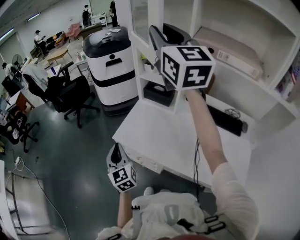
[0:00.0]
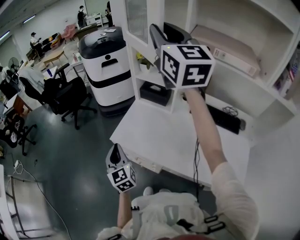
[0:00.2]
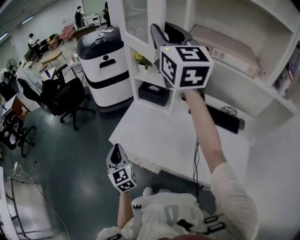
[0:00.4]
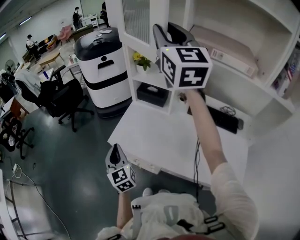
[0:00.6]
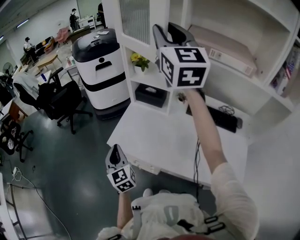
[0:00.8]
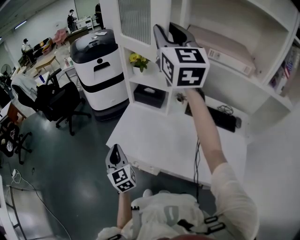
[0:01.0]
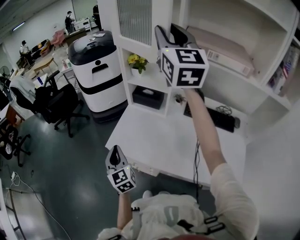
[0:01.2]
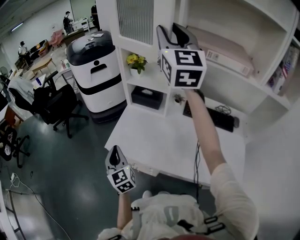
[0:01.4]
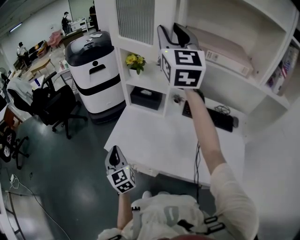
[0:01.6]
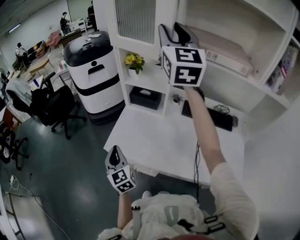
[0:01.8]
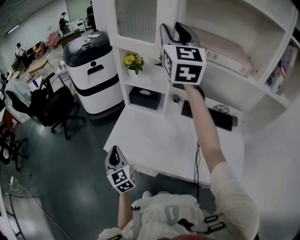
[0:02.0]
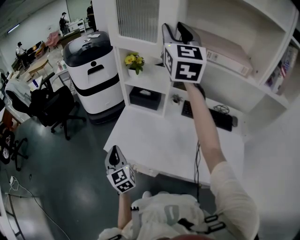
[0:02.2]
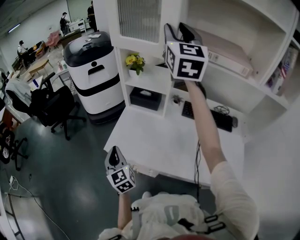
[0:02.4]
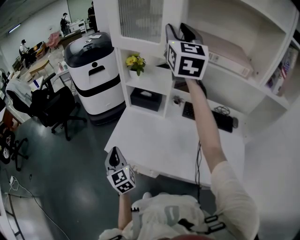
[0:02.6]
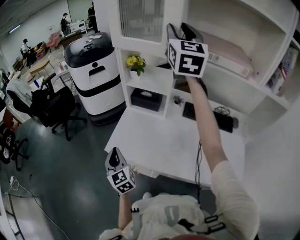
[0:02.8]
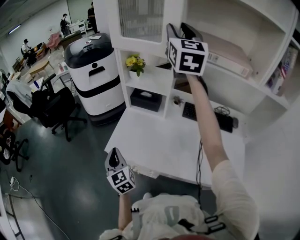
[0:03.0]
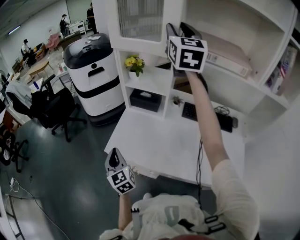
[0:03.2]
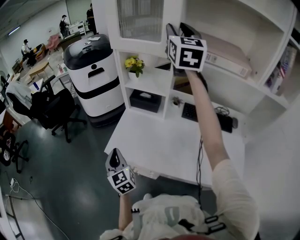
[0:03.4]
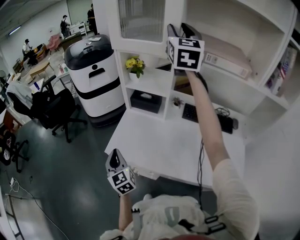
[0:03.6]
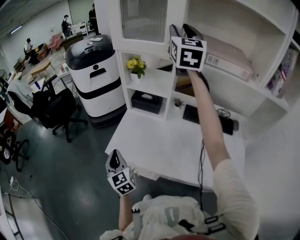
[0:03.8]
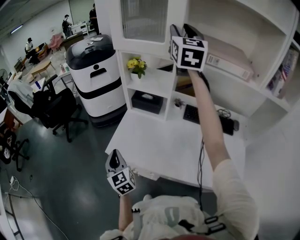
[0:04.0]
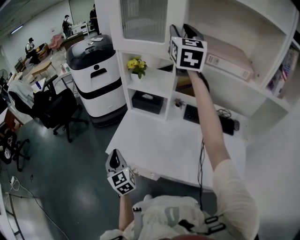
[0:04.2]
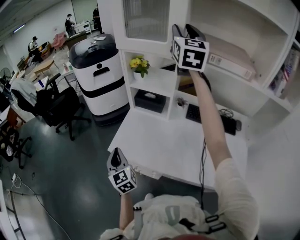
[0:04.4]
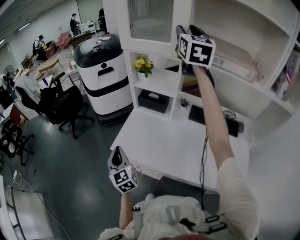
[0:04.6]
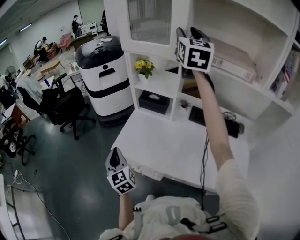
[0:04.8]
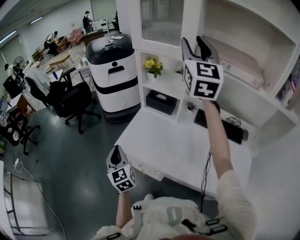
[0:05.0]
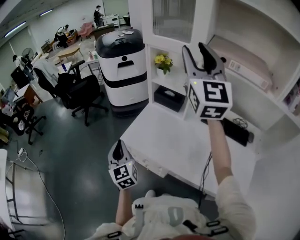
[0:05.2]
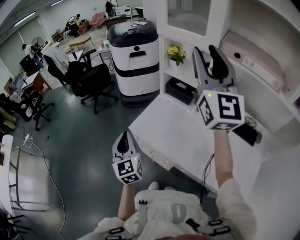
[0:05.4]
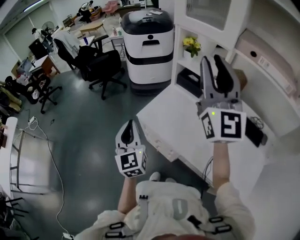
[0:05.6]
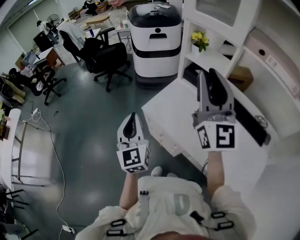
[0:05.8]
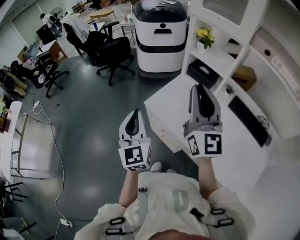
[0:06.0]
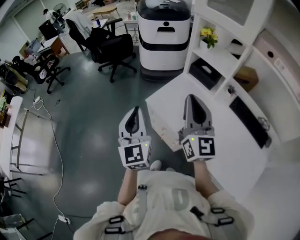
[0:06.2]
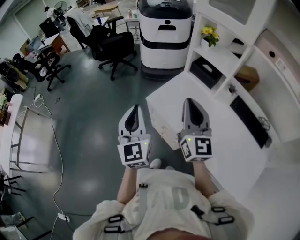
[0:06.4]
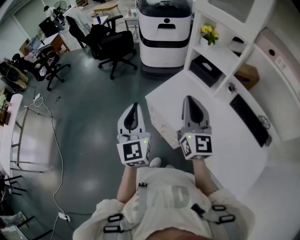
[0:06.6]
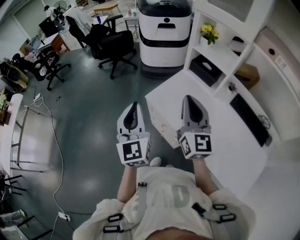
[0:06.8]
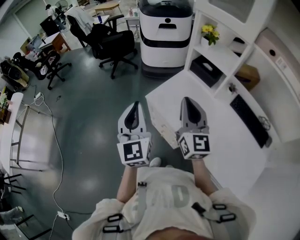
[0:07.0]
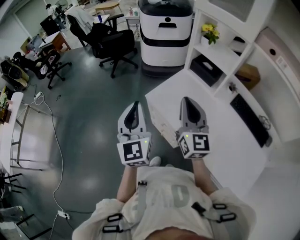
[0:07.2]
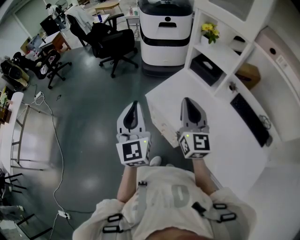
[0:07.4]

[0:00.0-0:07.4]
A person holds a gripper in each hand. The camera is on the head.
0:00.0 to 0:01.4: The right gripper travels to the right by about 10 cm, and swivels about 20 degrees.
0:01.4 to 0:03.0: The right gripper changes place by roughly 5 cm.
0:03.0 to 0:04.4: The grippers move only a little.
0:04.4 to 0:06.0: The right gripper is displaced backward, to the left and downward by approximately 40 cm, rotates some 40 degrees, and closes its fingers. Meanwhile the left gripper is displaced upward, backward and to the left by approximately 15 cm.
0:06.0 to 0:07.4: The right gripper travels downward by about 10 cm.

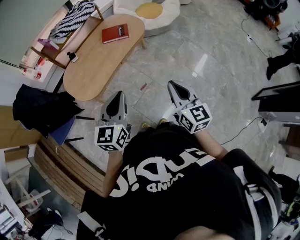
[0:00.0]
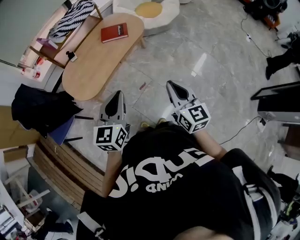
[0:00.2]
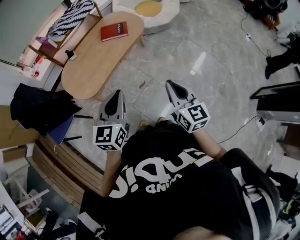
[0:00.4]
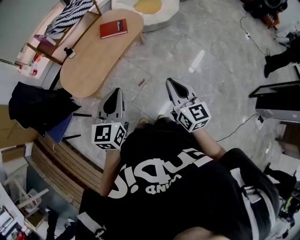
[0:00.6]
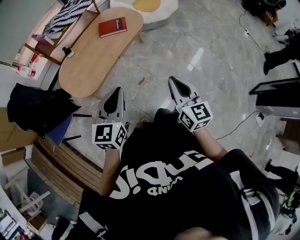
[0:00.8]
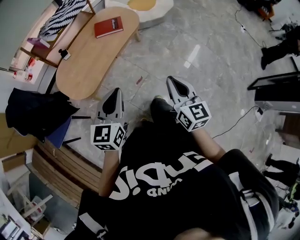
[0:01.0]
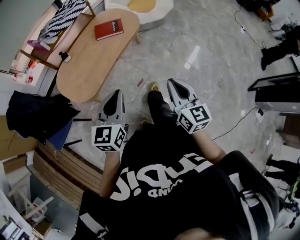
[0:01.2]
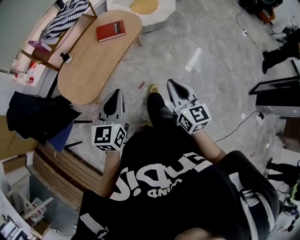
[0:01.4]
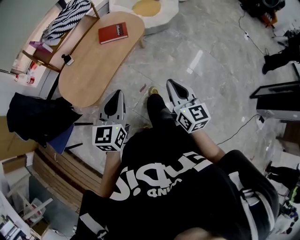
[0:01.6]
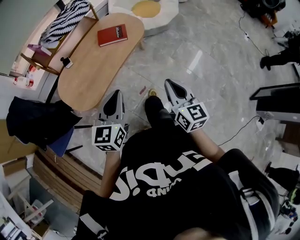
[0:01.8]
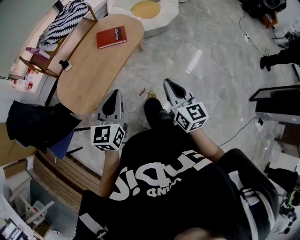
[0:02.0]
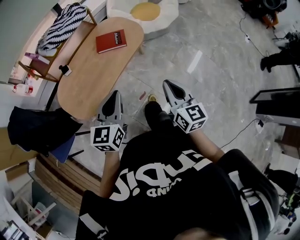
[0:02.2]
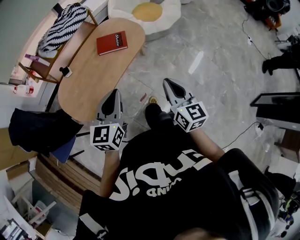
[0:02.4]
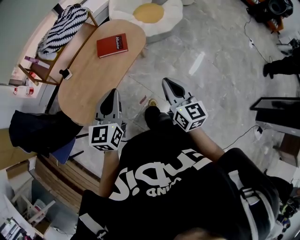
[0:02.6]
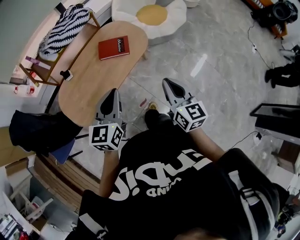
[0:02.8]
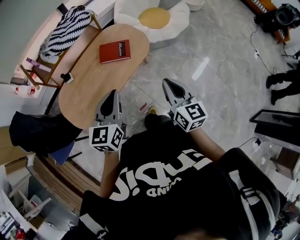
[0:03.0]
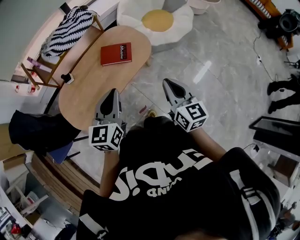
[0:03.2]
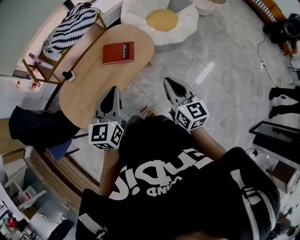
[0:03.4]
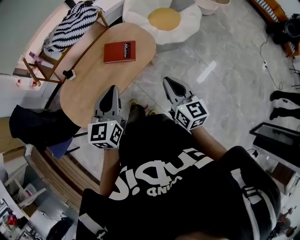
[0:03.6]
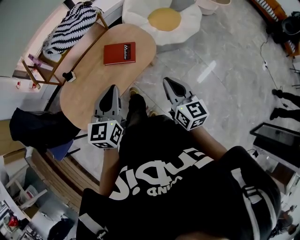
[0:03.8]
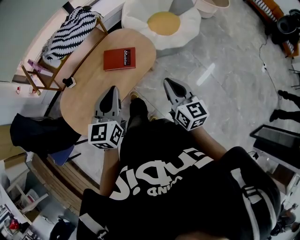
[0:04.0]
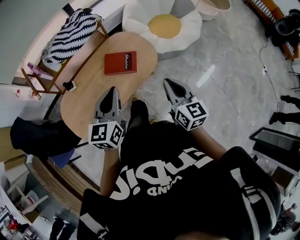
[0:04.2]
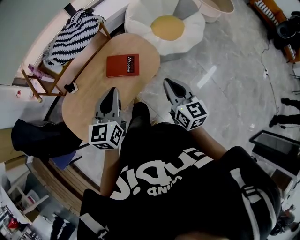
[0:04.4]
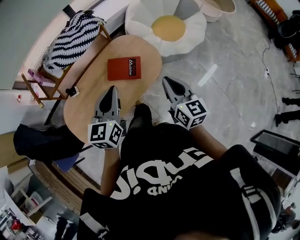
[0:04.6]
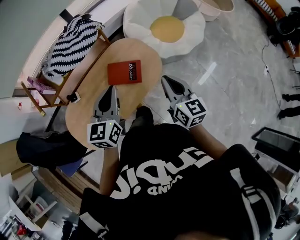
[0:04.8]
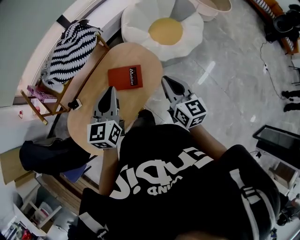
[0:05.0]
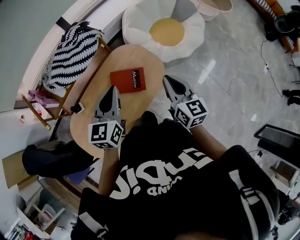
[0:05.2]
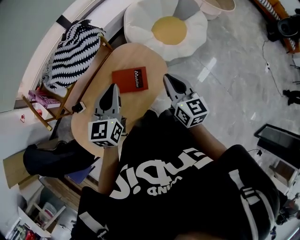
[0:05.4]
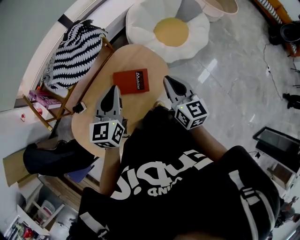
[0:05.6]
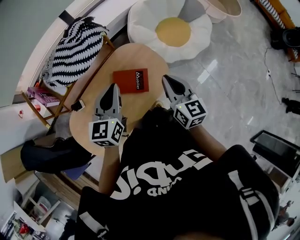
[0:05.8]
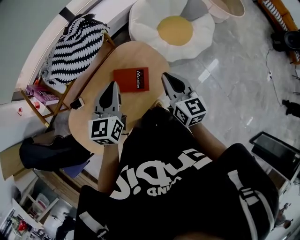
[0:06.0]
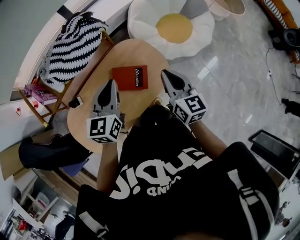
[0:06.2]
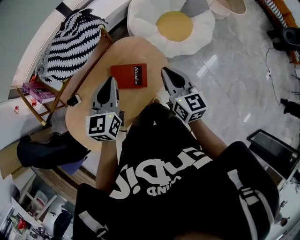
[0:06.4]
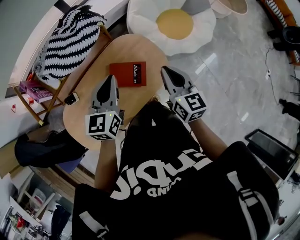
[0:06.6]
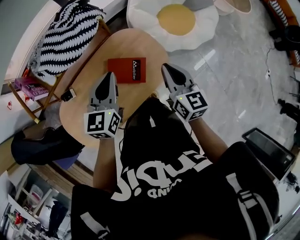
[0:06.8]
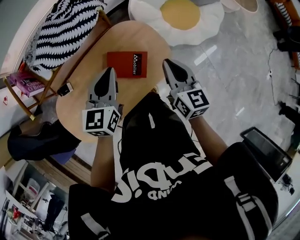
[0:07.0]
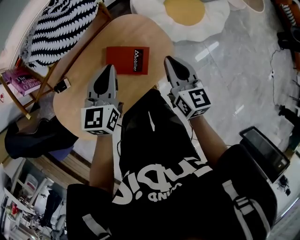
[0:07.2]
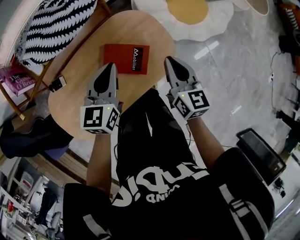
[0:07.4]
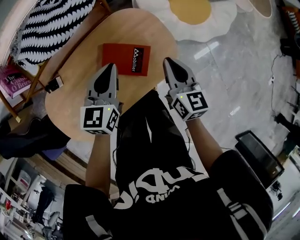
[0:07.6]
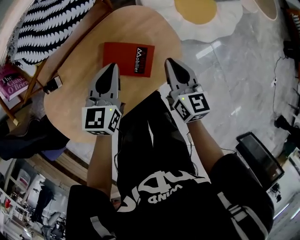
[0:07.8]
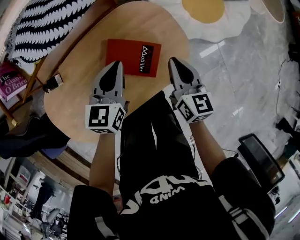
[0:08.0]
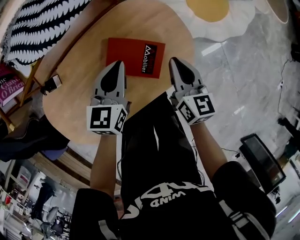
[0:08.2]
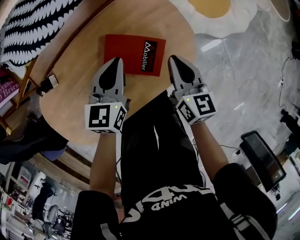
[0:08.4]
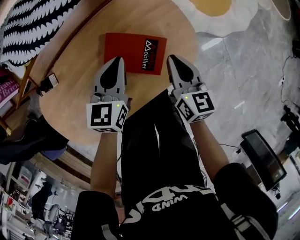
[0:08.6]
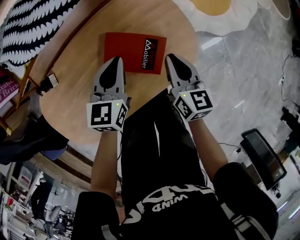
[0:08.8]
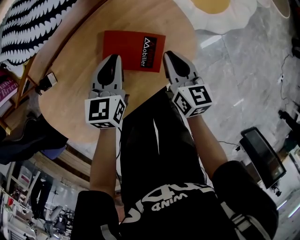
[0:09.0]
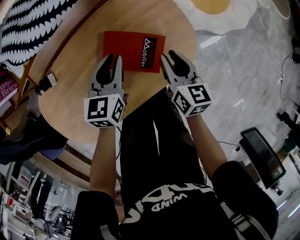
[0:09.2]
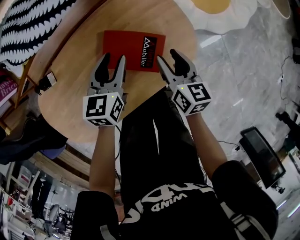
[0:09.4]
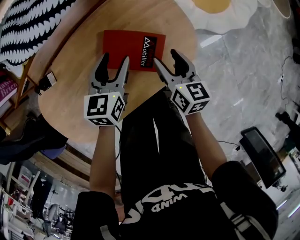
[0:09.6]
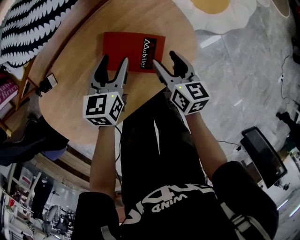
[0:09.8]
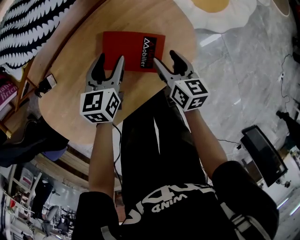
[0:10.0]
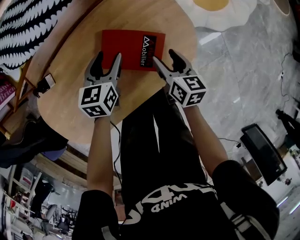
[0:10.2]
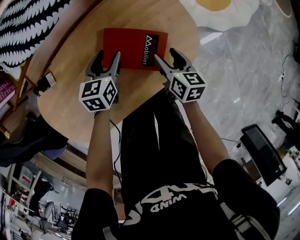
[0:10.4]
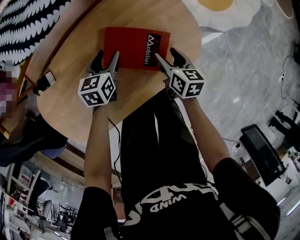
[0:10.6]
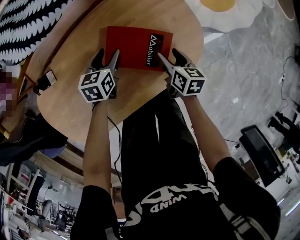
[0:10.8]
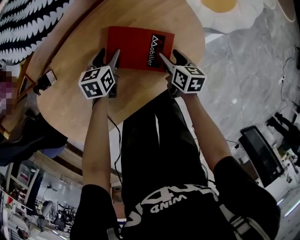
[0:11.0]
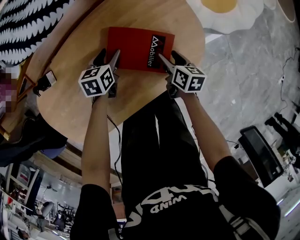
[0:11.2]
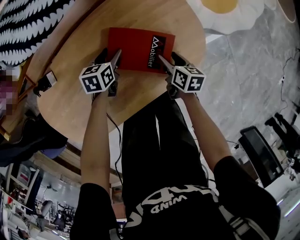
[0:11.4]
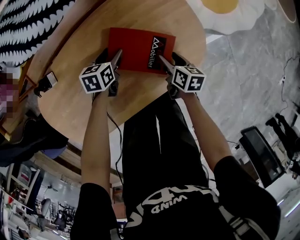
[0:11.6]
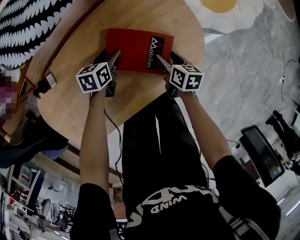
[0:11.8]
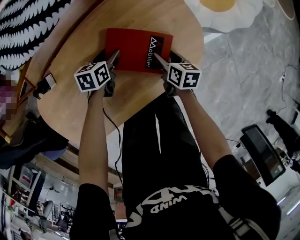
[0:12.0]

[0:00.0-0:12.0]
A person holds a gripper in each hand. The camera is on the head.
0:00.0 to 0:01.6: The two grippers go approximately 10 cm forward and to the left.
0:01.6 to 0:03.0: The two grippers go about 25 cm forward.
0:03.0 to 0:04.4: Both grippers travel together forward, some 20 cm.
0:04.4 to 0:06.0: The two grippers go roughly 20 cm forward.
0:06.0 to 0:07.6: The right gripper shifts some 20 cm downward and forward, while the left gripper travels downward by about 20 cm.
0:07.6 to 0:09.0: Both grippers travel together downward, some 15 cm.
0:09.0 to 0:10.4: Both grippers move downward, about 10 cm. The left gripper opens its fingers. The right gripper opens its fingers.
0:10.4 to 0:12.0: Both grippers move downward, about 10 cm.

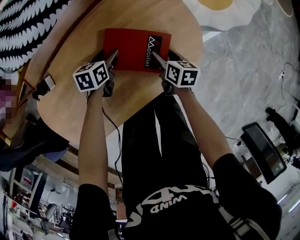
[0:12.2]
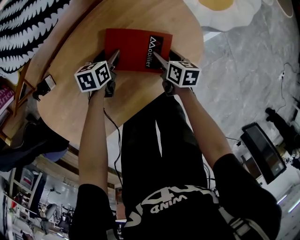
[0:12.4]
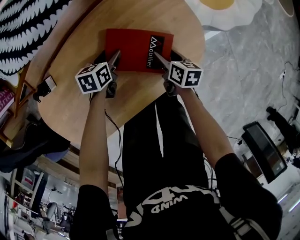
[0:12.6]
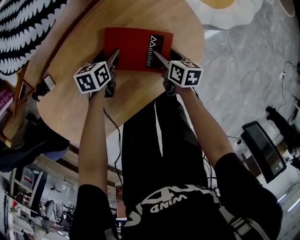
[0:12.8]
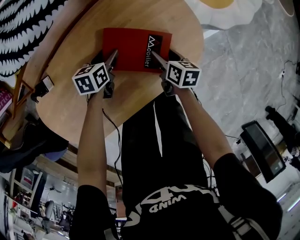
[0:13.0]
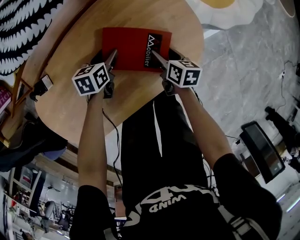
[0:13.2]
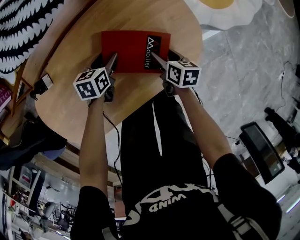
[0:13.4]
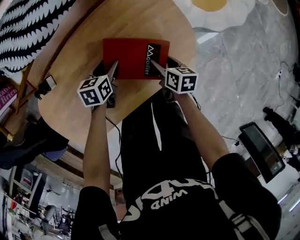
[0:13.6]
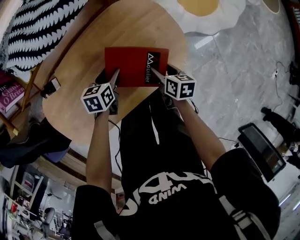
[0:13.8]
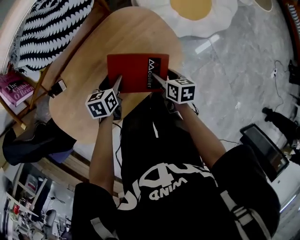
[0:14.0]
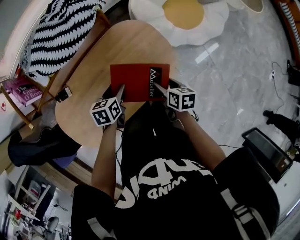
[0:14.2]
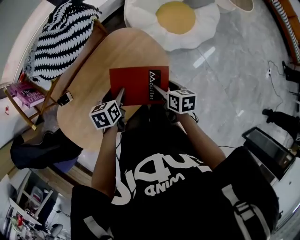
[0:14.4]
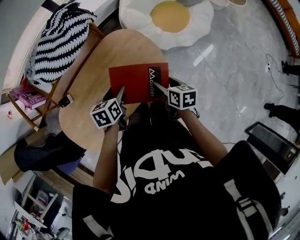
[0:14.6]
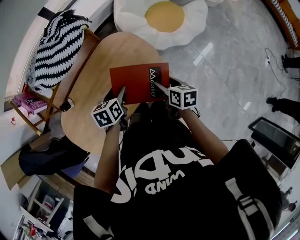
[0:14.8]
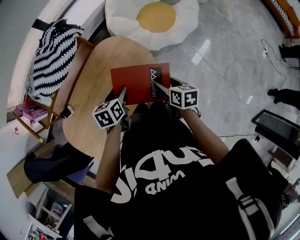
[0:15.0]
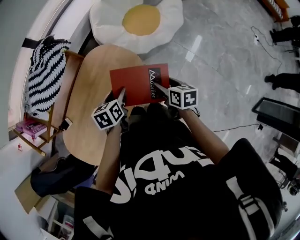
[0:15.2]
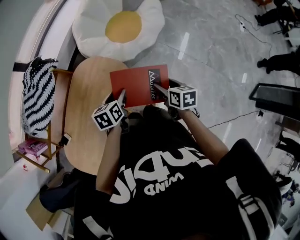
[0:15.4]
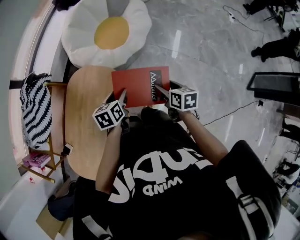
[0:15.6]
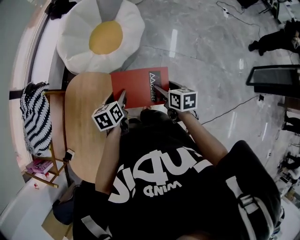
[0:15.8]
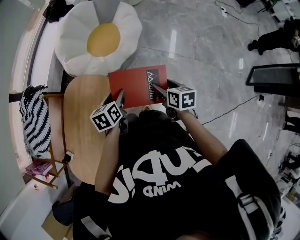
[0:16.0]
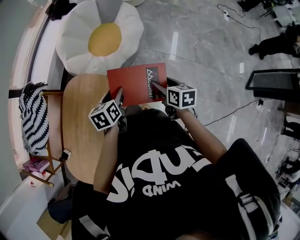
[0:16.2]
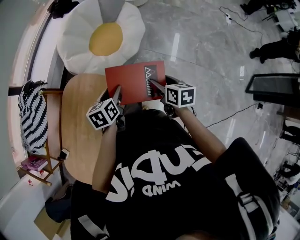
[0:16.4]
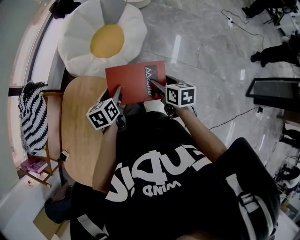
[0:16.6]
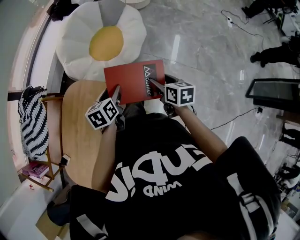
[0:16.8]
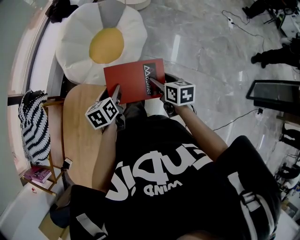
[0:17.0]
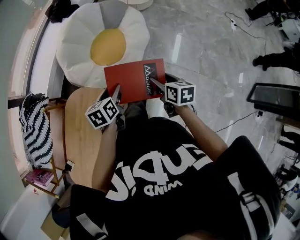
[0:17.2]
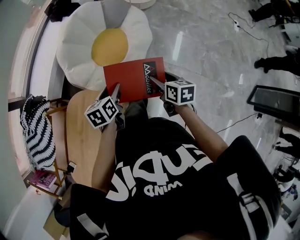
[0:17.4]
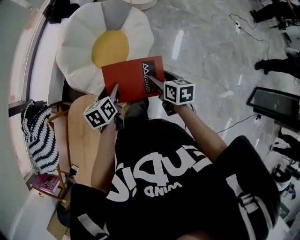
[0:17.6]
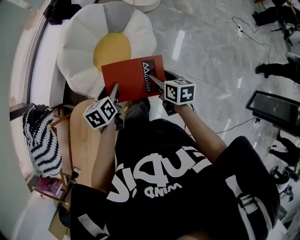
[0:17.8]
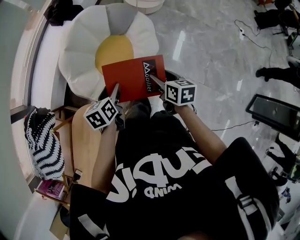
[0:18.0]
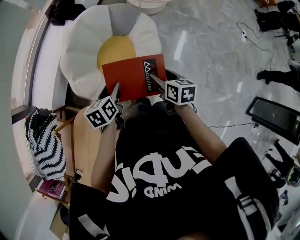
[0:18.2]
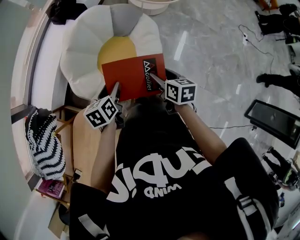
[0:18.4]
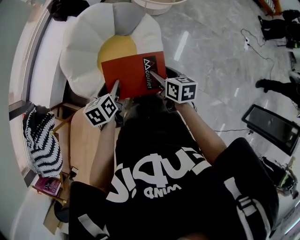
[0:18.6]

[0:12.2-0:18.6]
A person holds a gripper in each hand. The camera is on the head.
0:12.2 to 0:13.8: Both grippers move upward, approximately 10 cm.
0:13.8 to 0:15.4: The right gripper shifts by approximately 35 cm, and rotates roughly 30 degrees; the left gripper ends up about 35 cm from where it was, and turns by roughly 20 degrees.
0:15.4 to 0:17.0: The grippers both shift forward and to the right by roughly 20 cm.
0:17.0 to 0:18.6: The grippers both shift forward by approximately 35 cm.
